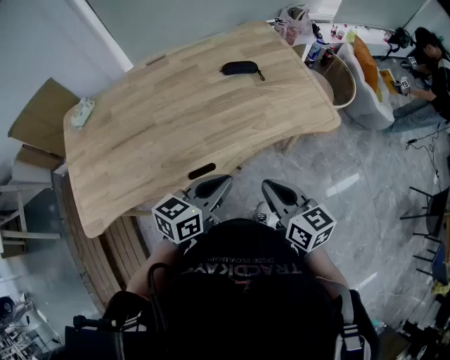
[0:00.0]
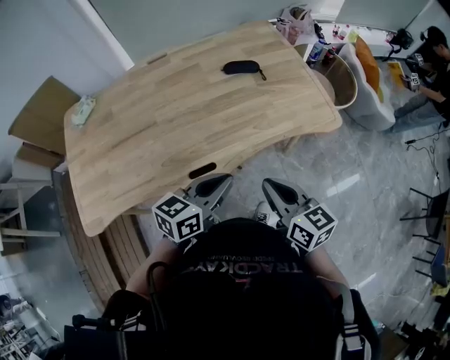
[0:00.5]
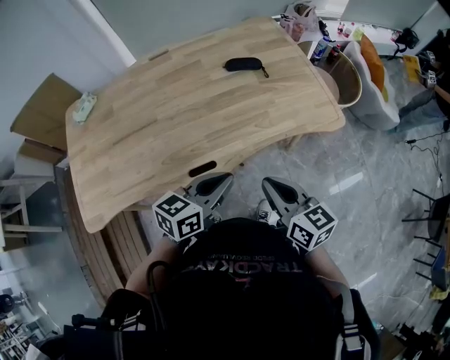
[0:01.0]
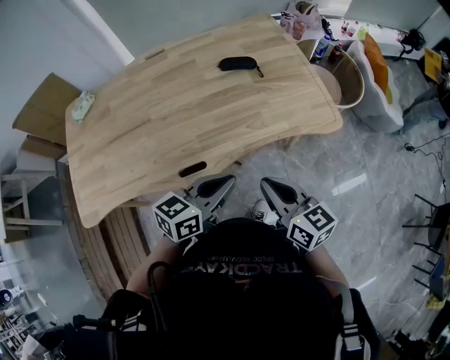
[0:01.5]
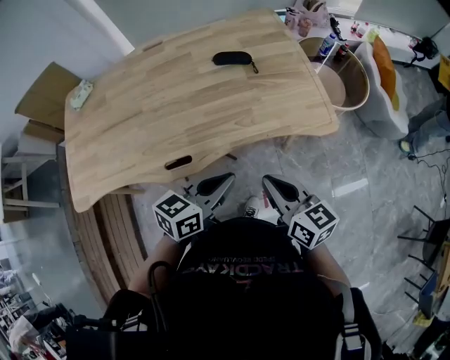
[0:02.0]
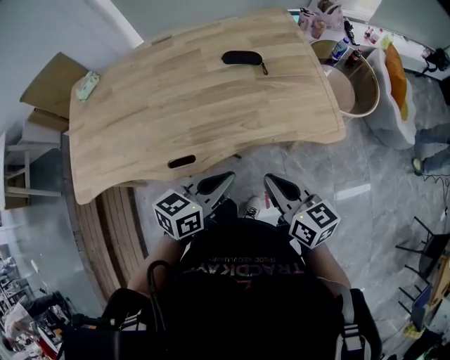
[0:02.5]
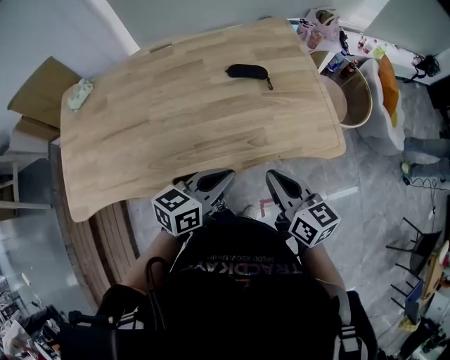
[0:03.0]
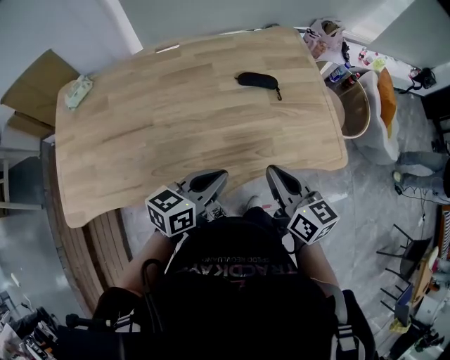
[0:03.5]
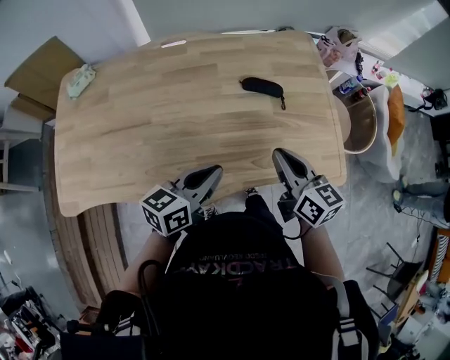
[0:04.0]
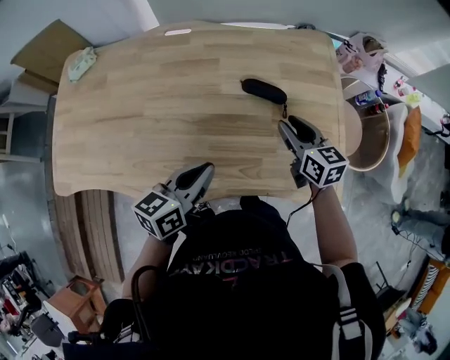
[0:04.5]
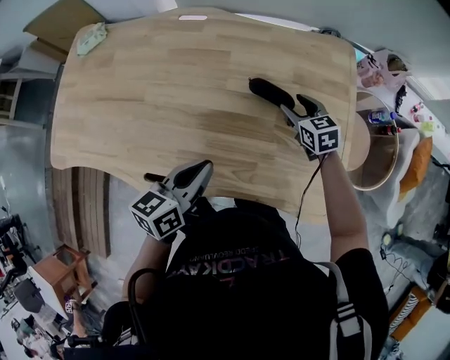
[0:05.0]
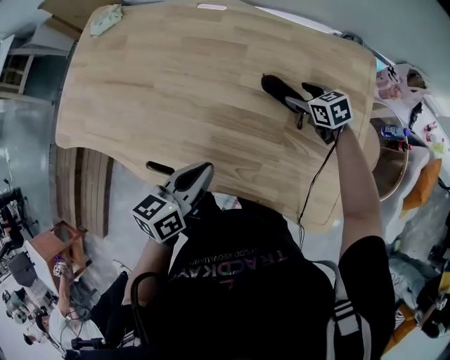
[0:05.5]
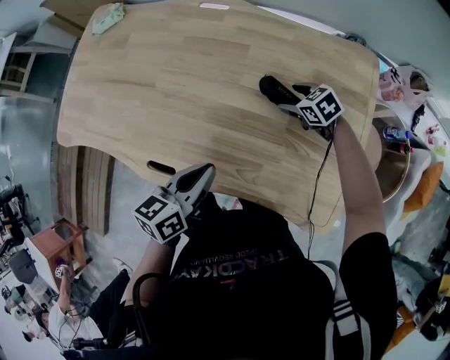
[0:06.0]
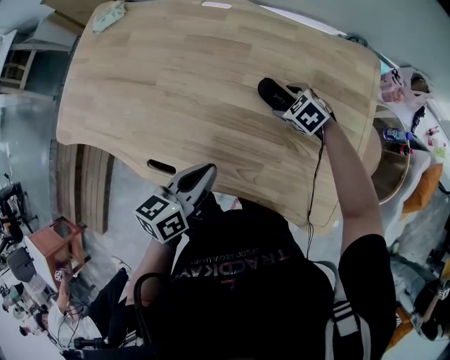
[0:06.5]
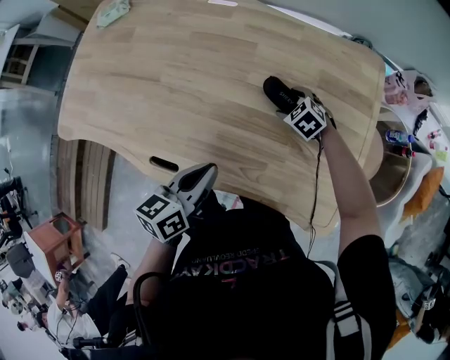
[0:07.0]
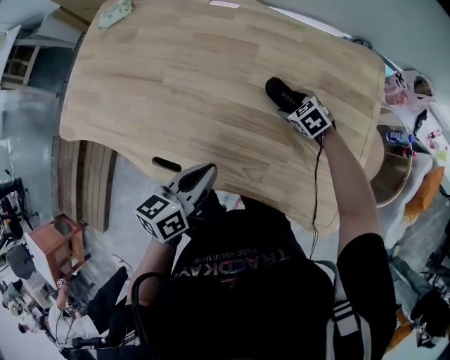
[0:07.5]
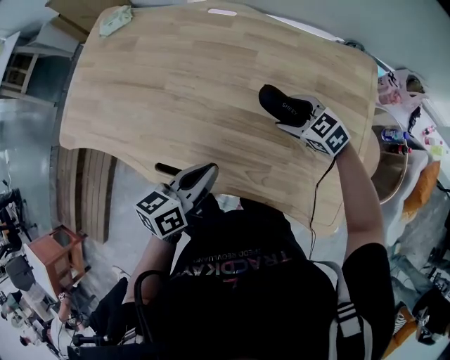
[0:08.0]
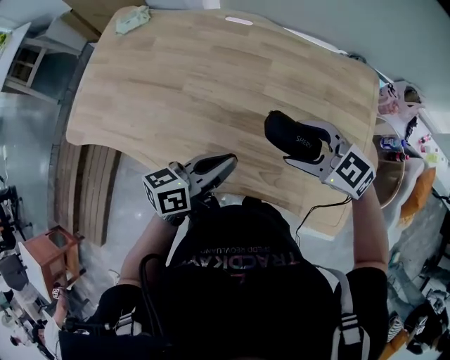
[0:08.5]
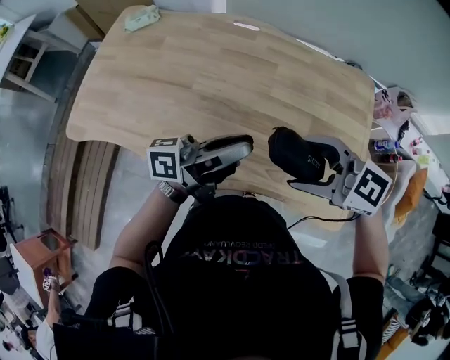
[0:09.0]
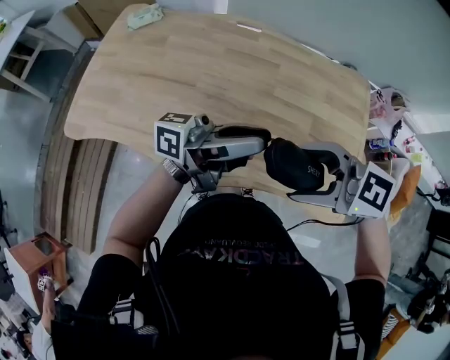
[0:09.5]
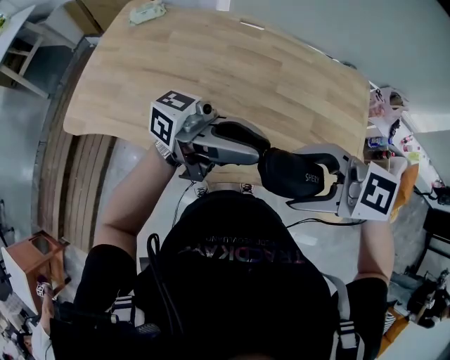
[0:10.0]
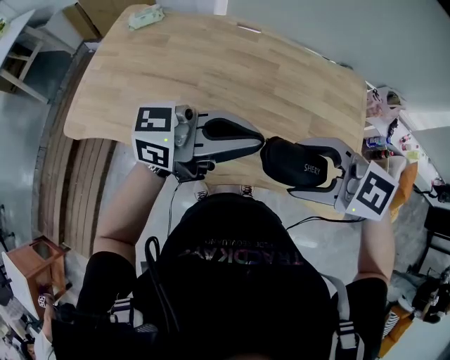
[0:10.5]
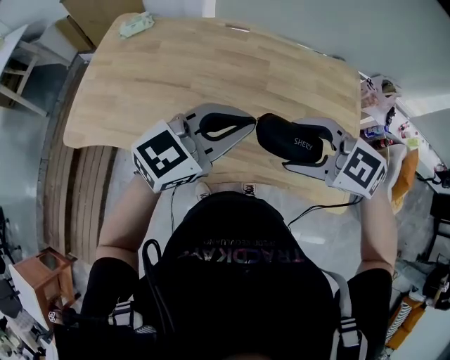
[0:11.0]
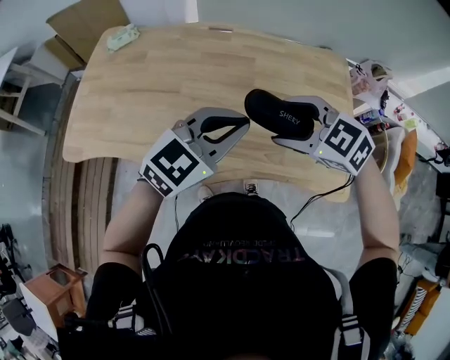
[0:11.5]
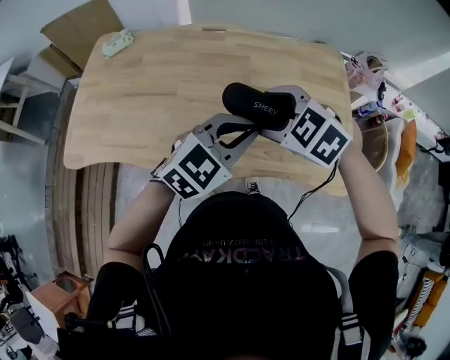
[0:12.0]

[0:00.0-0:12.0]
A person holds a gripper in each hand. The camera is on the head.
0.0 to 2.0 s: The two grippers go about 10 cm to the right.
2.0 to 4.0 s: The left gripper heads forward and to the left, covering some 20 cm, while the right gripper is displaced forward by roughly 20 cm.
4.0 to 6.0 s: The left gripper shifts by some 10 cm, and changes its angle by approximately 30 degrees. The right gripper changes place by approximately 35 cm, tilts its fingers about 40 degrees downward, and opens up.
6.0 to 8.0 s: The right gripper is displaced upward, to the left and backward by roughly 10 cm.
8.0 to 10.0 s: The grippers both shift upward by roughly 25 cm. The right gripper rotates roughly 30 degrees; the left gripper tips its fingers upward by approximately 50 degrees.
10.0 to 12.0 s: The right gripper moves roughly 15 cm, and angles its fingers downward, by about 30 degrees. Meanwhile the left gripper is displaced downward by roughly 10 cm, and tilts its fingers approximately 50 degrees downward.

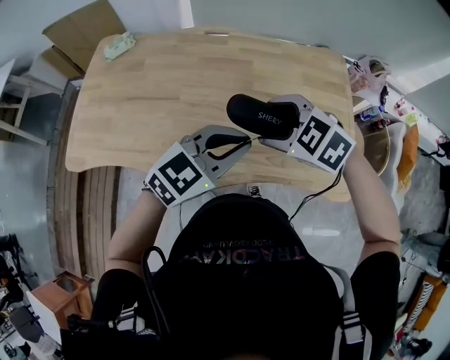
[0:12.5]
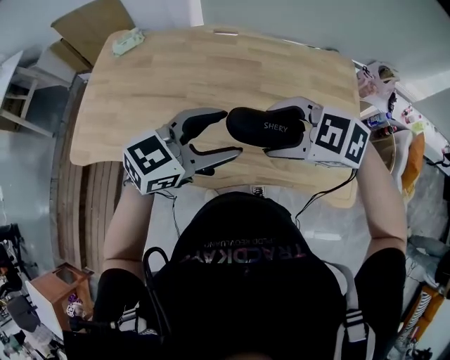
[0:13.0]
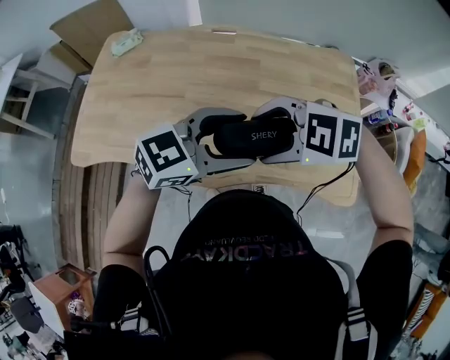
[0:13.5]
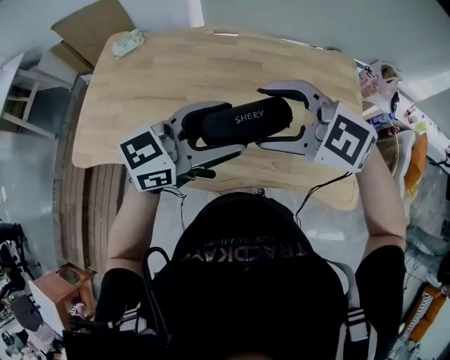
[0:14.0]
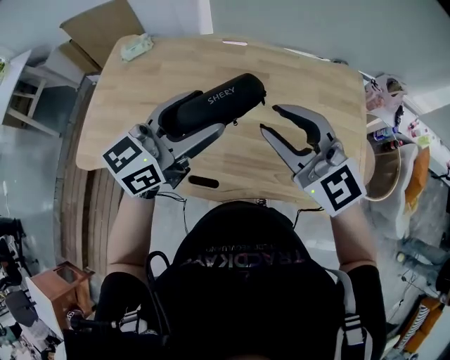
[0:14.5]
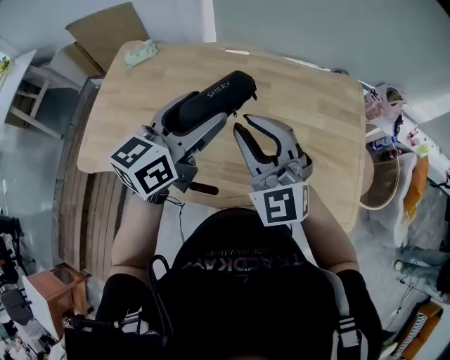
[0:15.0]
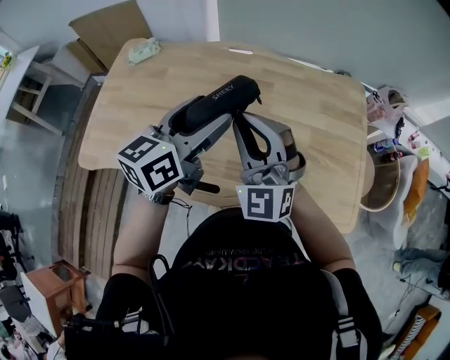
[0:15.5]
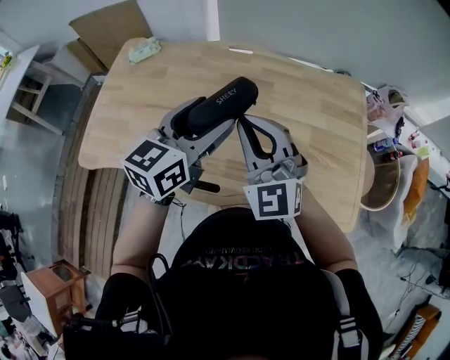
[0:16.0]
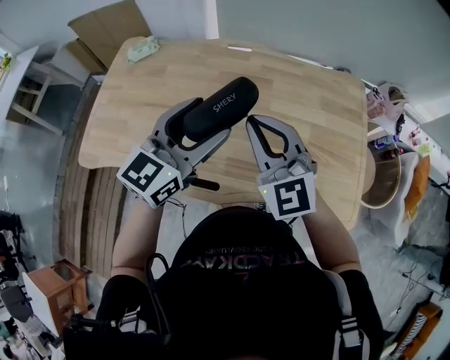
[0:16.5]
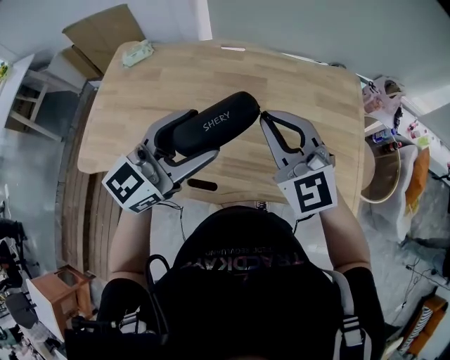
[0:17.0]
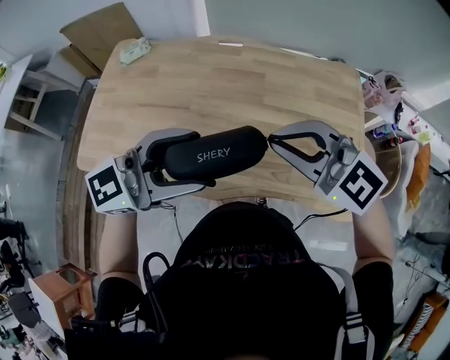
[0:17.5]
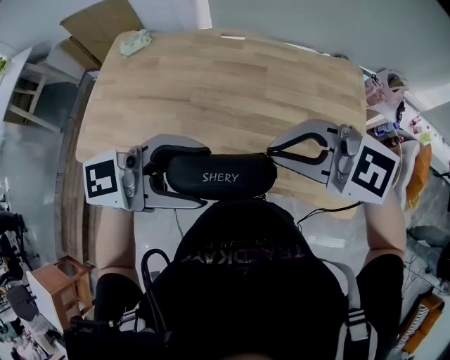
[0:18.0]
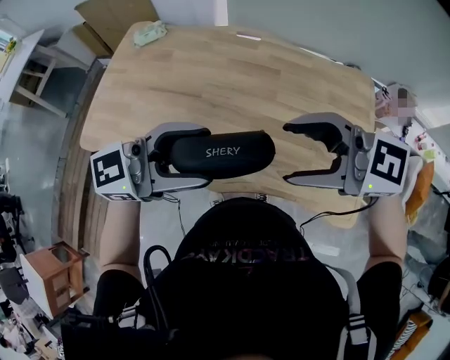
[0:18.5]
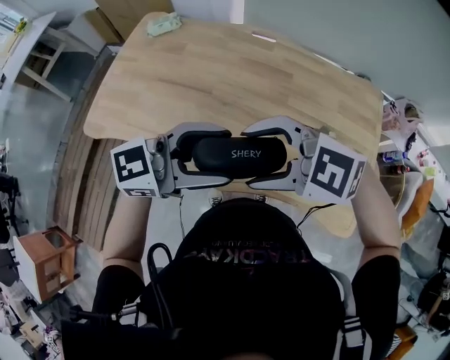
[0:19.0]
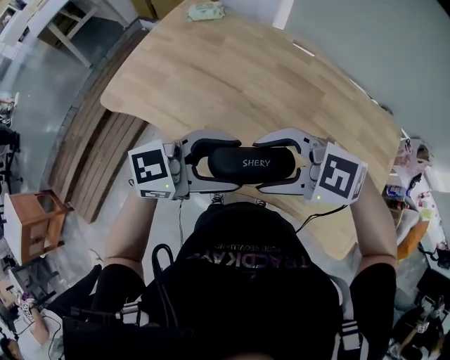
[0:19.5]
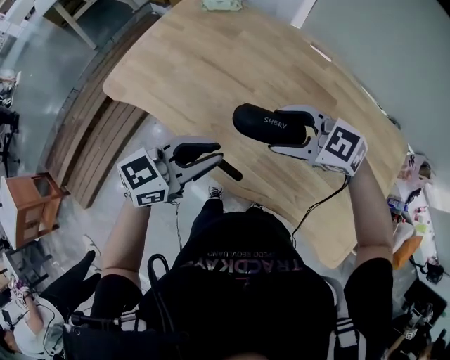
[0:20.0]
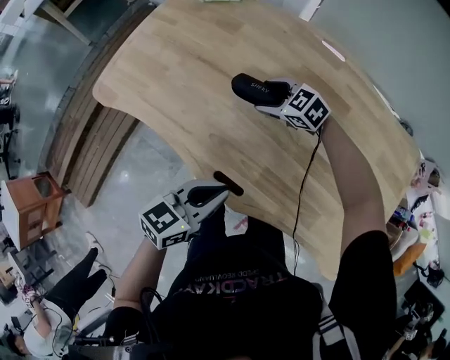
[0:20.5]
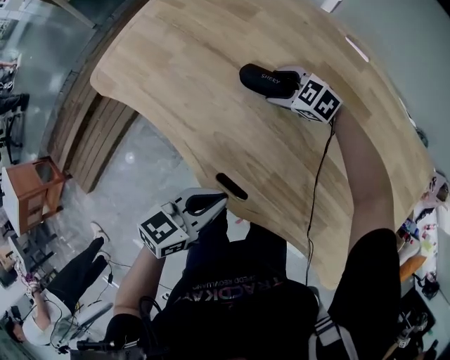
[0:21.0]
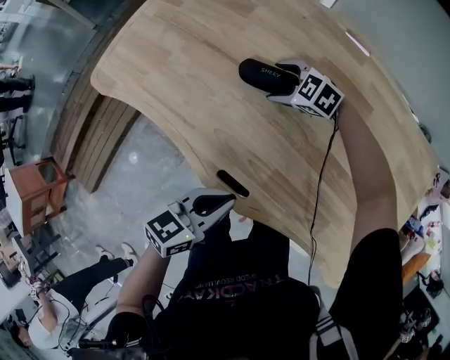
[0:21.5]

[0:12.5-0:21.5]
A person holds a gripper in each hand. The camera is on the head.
12.5 to 14.5 s: The left gripper shifts by roughly 15 cm, rotates approximately 30 degrees, and opens its fingers. Meanwhile the right gripper is displaced upward by about 15 cm, points its fingers approximately 60 degrees further upward, and closes.
14.5 to 17.0 s: The right gripper changes its angle by approximately 30 degrees, and closes its fingers.
17.0 to 19.5 s: The right gripper changes place by some 15 cm, changes its angle by roughly 70 degrees, and opens its fingers. The left gripper heads downward, covering roughly 5 cm.
19.5 to 21.5 s: The right gripper changes place by about 40 cm; the left gripper heads downward, covering some 20 cm, changes its angle by some 50 degrees, and closes up.

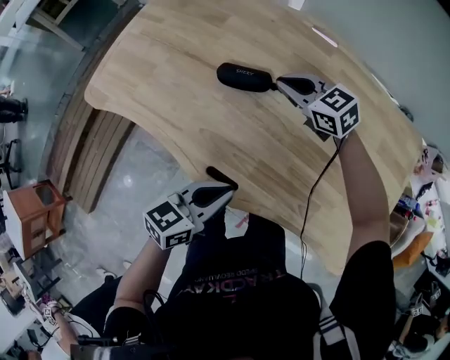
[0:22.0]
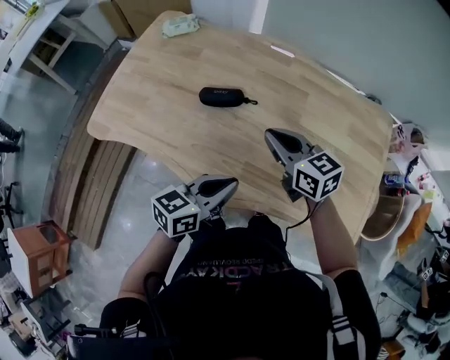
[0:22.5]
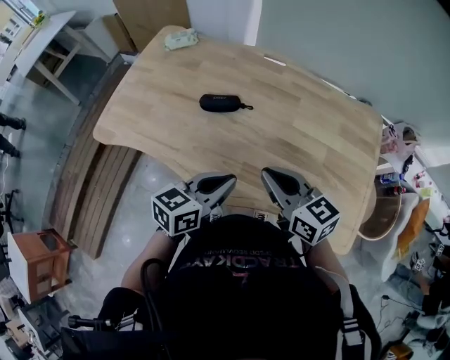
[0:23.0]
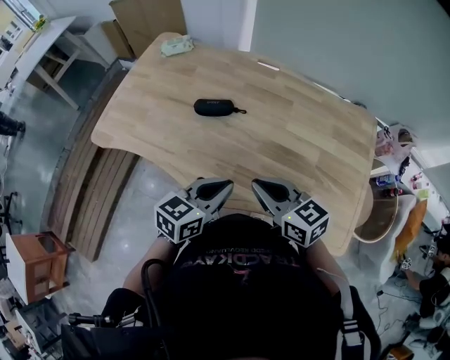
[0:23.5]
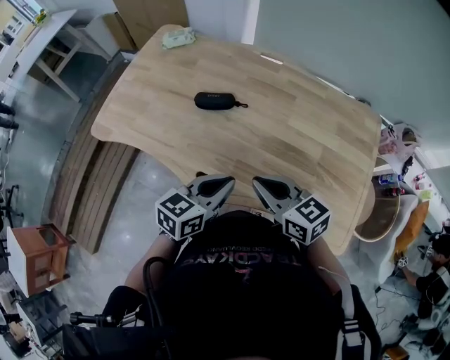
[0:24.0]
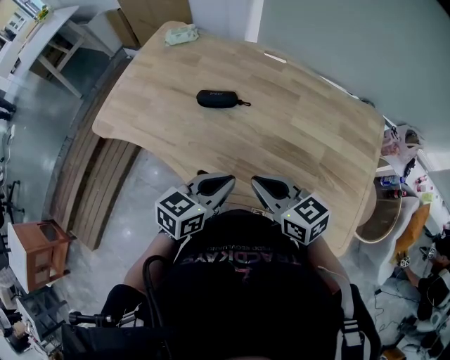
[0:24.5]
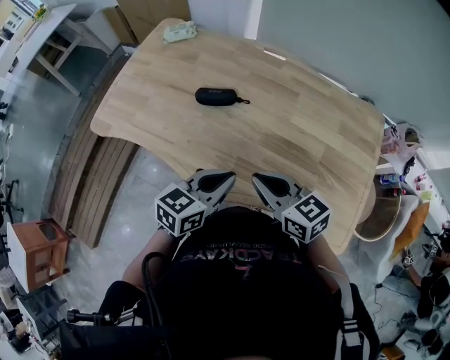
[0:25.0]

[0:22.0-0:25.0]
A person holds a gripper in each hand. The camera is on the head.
22.0 to 23.5 s: The right gripper shifts about 30 cm backward, and changes its angle by some 30 degrees; the left gripper goes roughly 5 cm upward.
23.5 to 25.0 s: Both grippers stay about where they are.

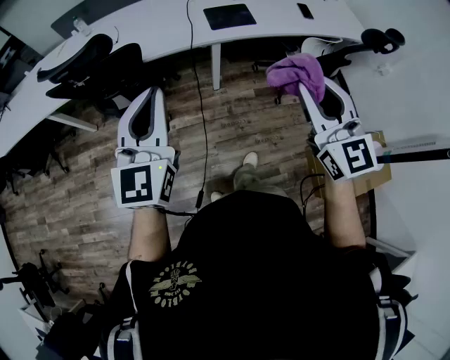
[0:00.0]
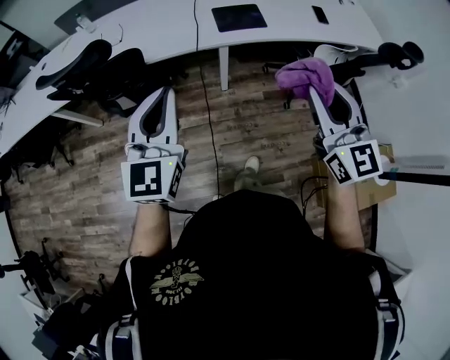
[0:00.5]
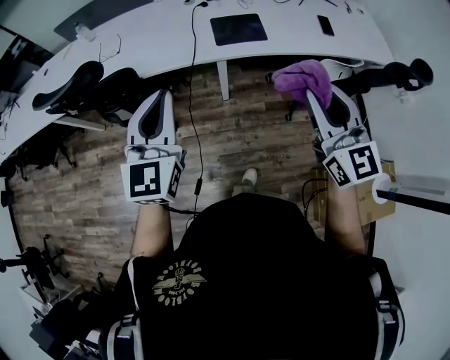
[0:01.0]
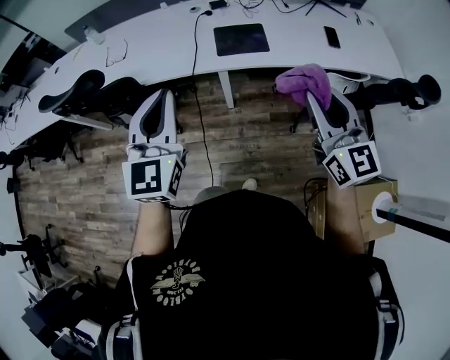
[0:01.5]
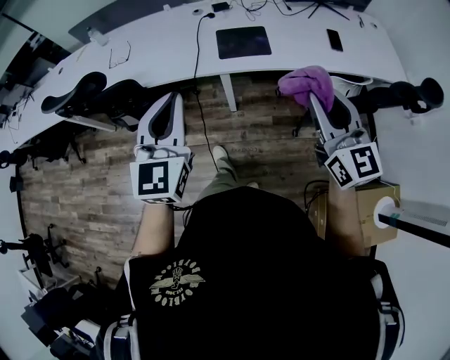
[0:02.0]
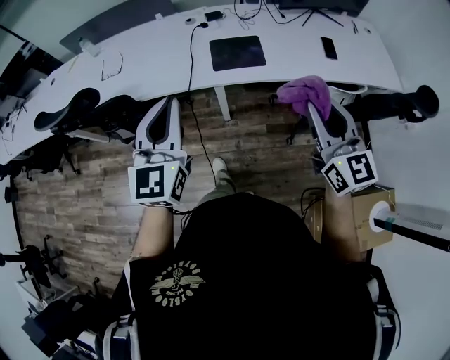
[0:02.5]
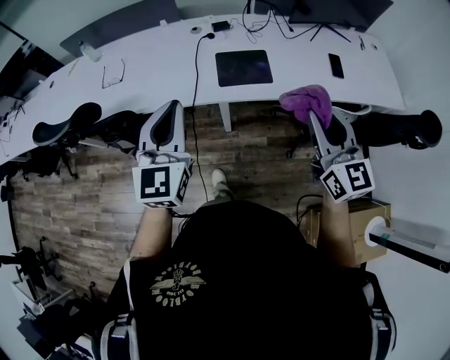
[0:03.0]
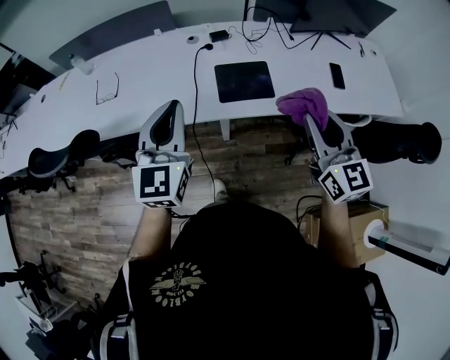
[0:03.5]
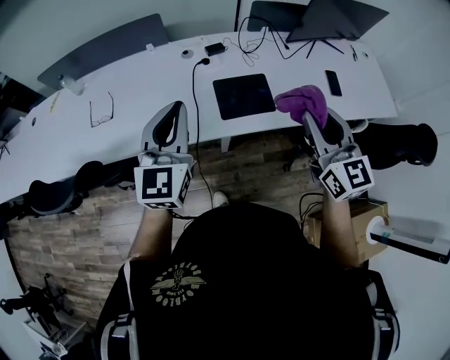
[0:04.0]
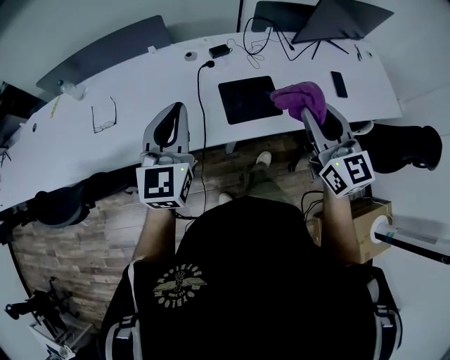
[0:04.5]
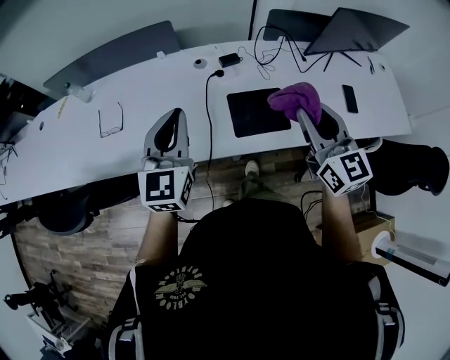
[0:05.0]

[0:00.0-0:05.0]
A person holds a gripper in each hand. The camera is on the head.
0.0 to 2.5 s: Both grippers travel together forward and to the right, about 30 cm.
2.5 to 5.0 s: Both grippers travel together forward, about 30 cm.
